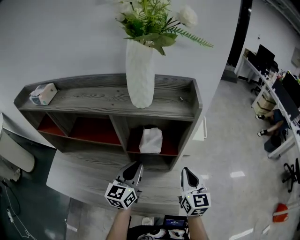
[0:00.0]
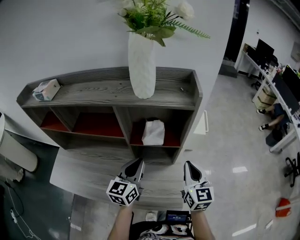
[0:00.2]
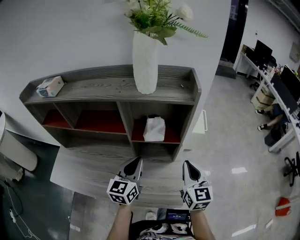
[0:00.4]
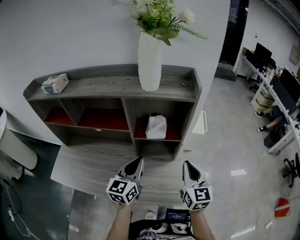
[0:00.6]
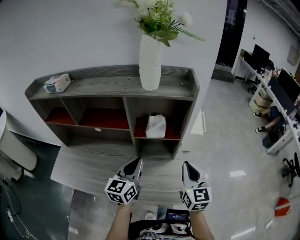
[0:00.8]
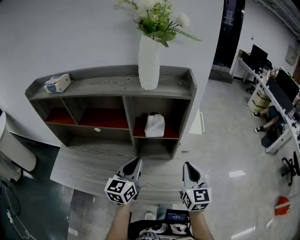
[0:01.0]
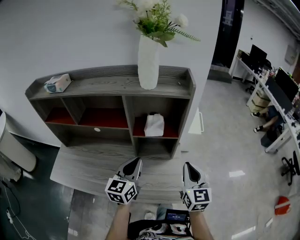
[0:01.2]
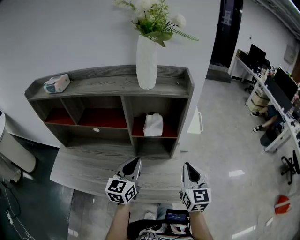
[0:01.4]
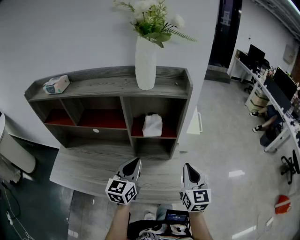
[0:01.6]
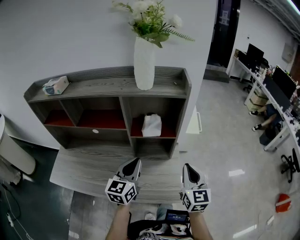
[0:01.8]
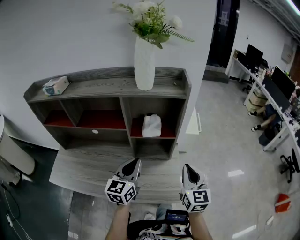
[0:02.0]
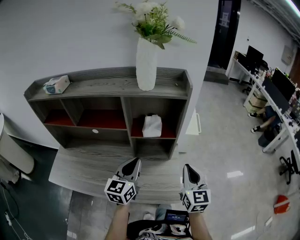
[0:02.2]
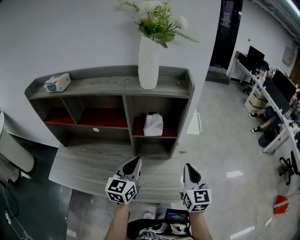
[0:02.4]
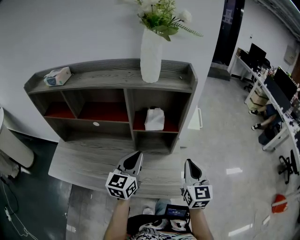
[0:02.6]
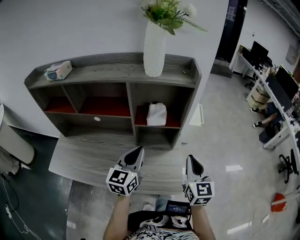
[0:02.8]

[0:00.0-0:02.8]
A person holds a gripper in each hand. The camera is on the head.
0:00.0 to 0:01.4: The grippers both shift backward by some 10 cm.
0:01.4 to 0:02.8: The two grippers keep their place.

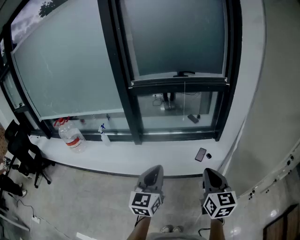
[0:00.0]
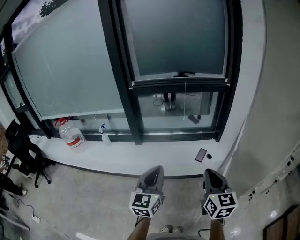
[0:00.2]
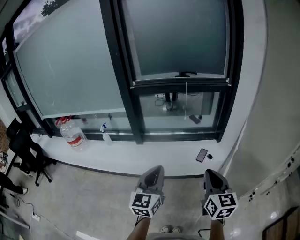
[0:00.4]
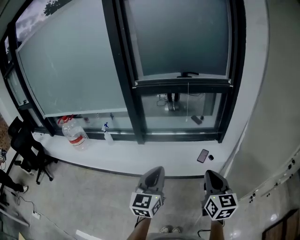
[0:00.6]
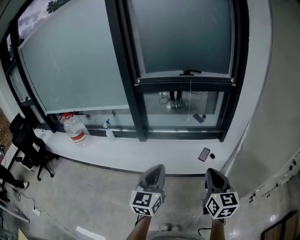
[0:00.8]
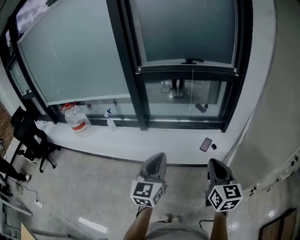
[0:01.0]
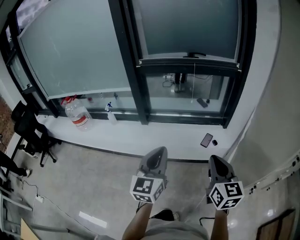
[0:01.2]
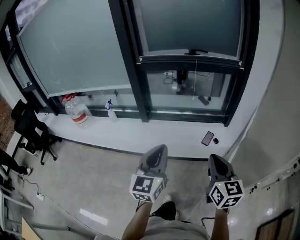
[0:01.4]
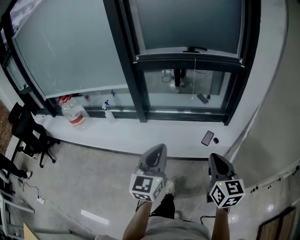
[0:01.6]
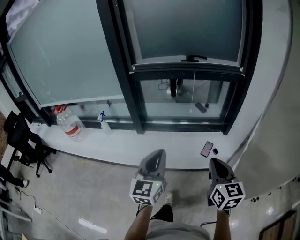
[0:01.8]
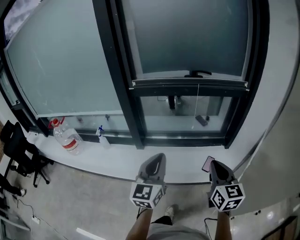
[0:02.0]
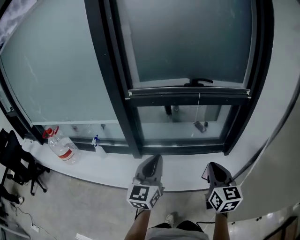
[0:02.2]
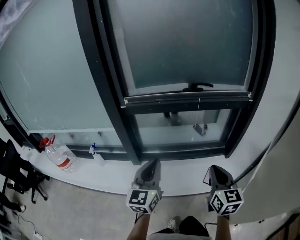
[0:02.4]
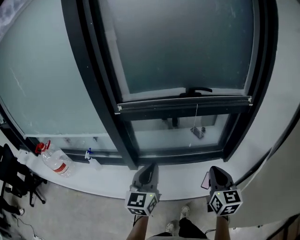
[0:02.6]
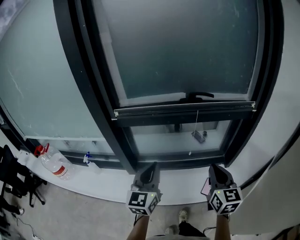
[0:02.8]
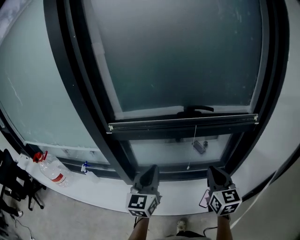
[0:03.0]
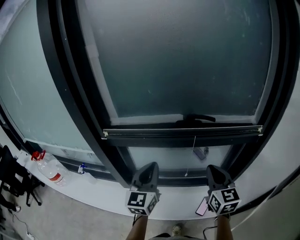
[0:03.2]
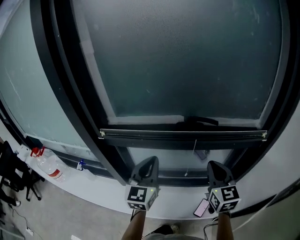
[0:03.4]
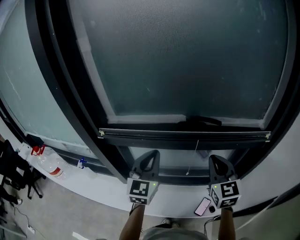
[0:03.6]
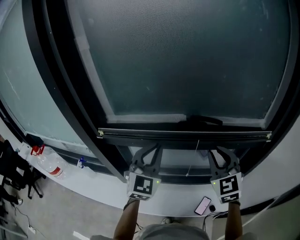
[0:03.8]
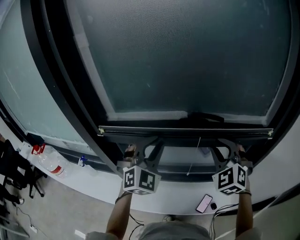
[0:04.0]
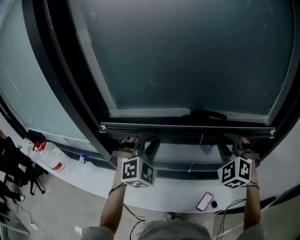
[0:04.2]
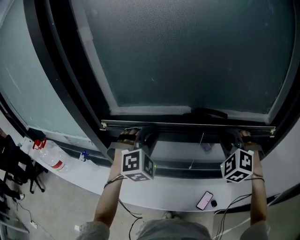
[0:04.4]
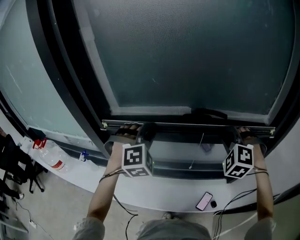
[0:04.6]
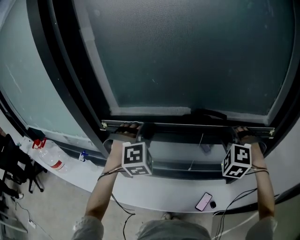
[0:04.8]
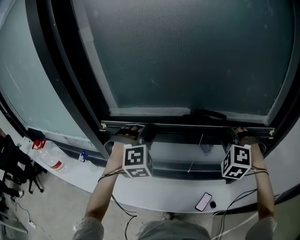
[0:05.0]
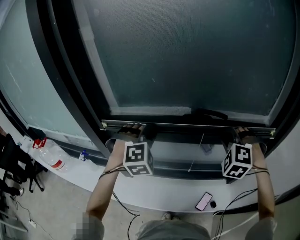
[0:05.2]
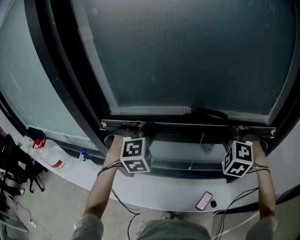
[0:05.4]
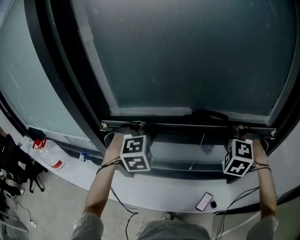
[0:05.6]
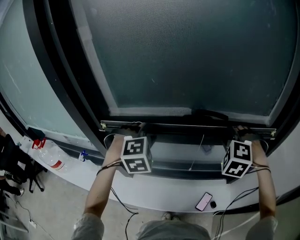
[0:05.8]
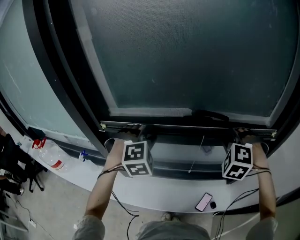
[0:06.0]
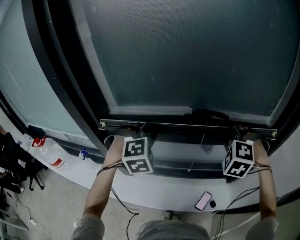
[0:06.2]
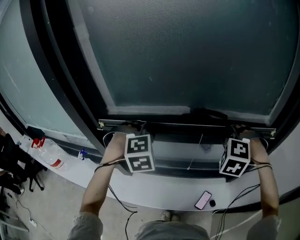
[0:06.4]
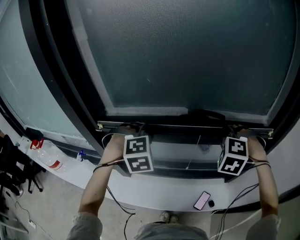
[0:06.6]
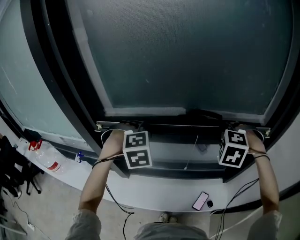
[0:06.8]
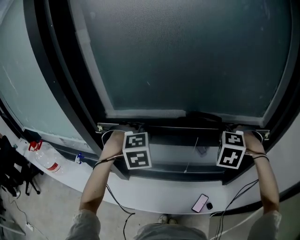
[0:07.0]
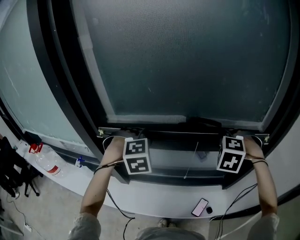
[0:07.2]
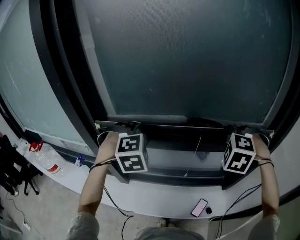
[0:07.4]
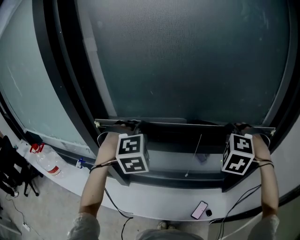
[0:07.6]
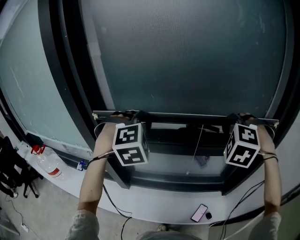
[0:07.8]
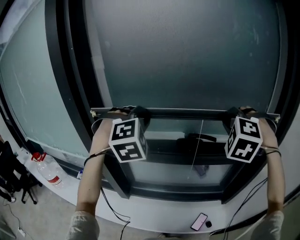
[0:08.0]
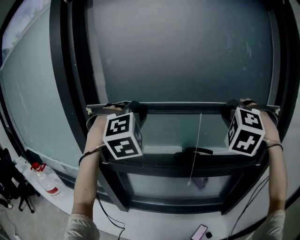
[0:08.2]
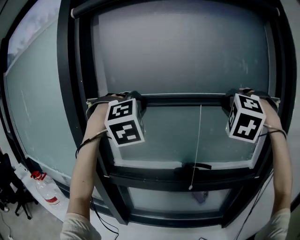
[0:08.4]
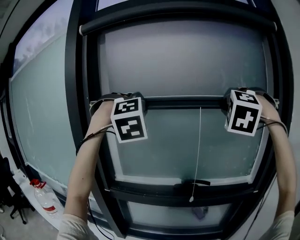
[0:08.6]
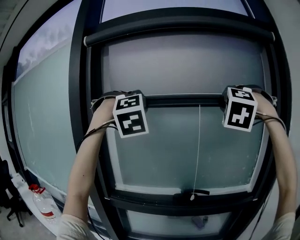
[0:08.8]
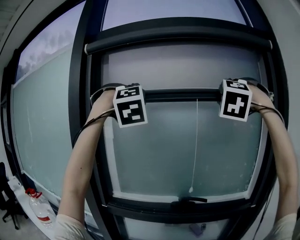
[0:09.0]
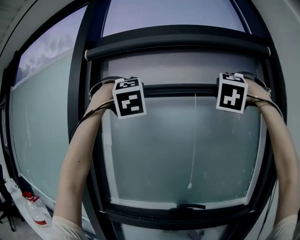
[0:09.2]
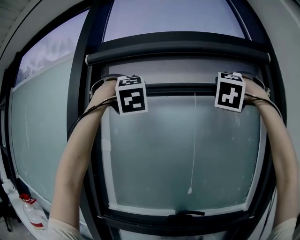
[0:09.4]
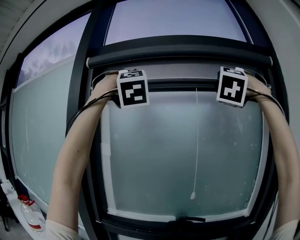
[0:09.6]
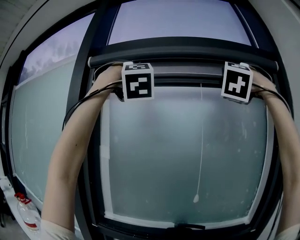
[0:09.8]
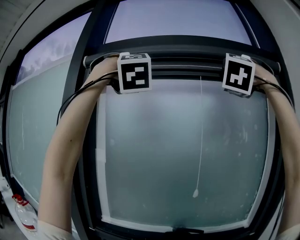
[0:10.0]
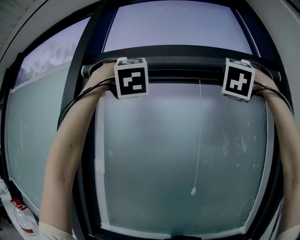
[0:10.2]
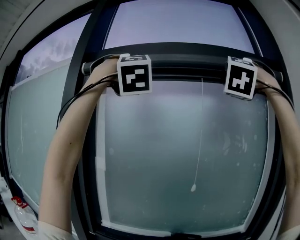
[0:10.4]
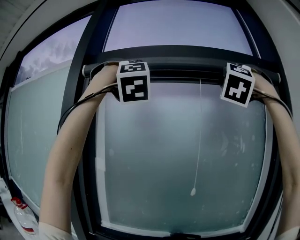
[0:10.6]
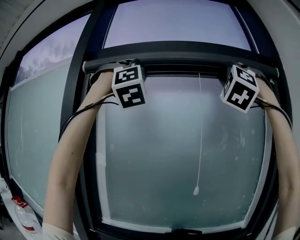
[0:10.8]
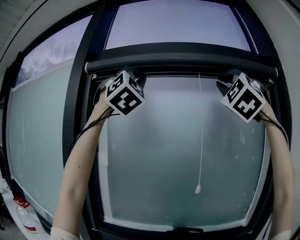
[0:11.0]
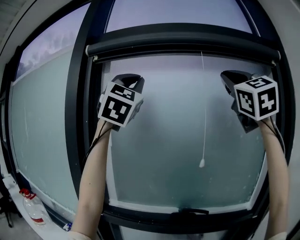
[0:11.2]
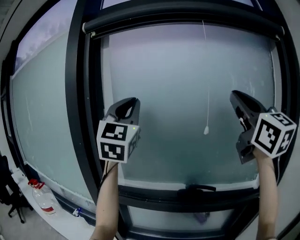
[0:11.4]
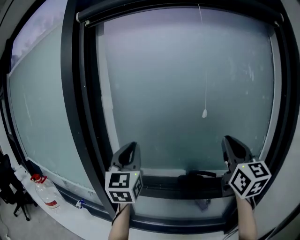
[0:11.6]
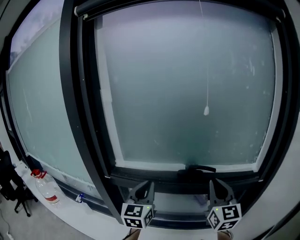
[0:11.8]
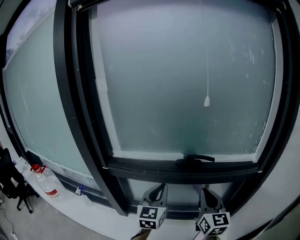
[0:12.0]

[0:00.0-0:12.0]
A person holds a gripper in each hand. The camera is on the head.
0:00.0 to 0:01.6: The grippers stay close to where they were, moving slightly.
0:01.6 to 0:03.0: The two grippers travel together, forward, about 40 cm.
0:03.0 to 0:04.4: The grippers both shift forward by roughly 20 cm. The left gripper twists roughly 70 degrees clockwise, seen from behind, while the right gripper rotates around the line of its fingers by about 70 degrees, counterclockwise from behind.
0:06.0 to 0:07.6: The two grippers go some 5 cm upward.
0:07.6 to 0:09.0: Both grippers move upward, roughly 50 cm. The right gripper tips its fingers upward by approximately 40 degrees, while the left gripper angles its fingers upward, by roughly 30 degrees.
0:09.0 to 0:10.4: Both grippers travel together upward, some 20 cm.
0:10.4 to 0:12.0: The grippers both shift downward by roughly 70 cm. The left gripper rotates around the line of its fingers by approximately 90 degrees, counterclockwise from behind. The right gripper rotates around the line of its fingers by about 90 degrees, clockwise from behind.

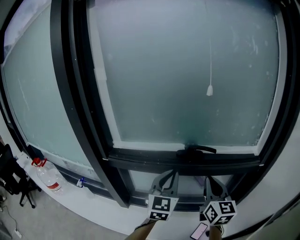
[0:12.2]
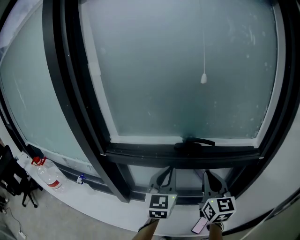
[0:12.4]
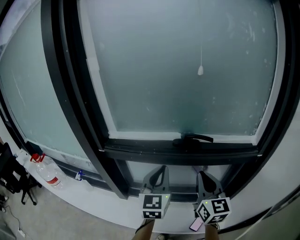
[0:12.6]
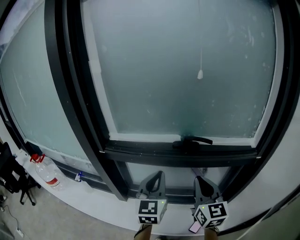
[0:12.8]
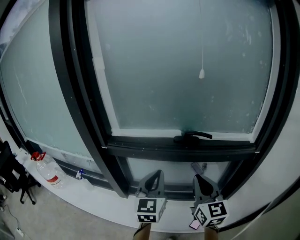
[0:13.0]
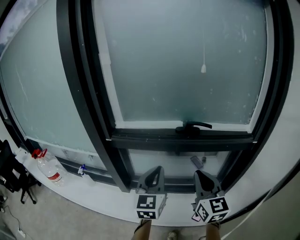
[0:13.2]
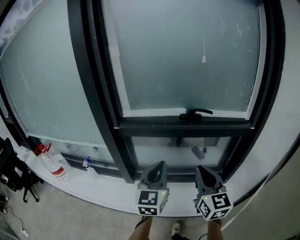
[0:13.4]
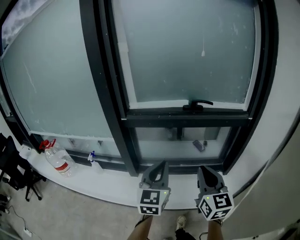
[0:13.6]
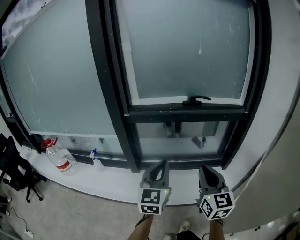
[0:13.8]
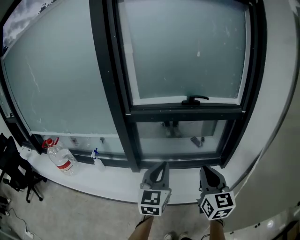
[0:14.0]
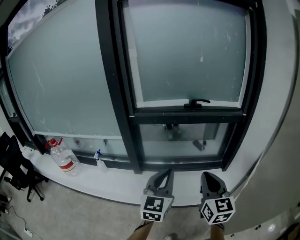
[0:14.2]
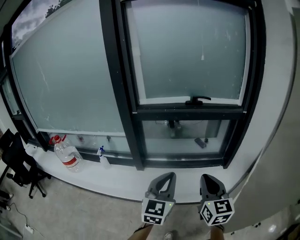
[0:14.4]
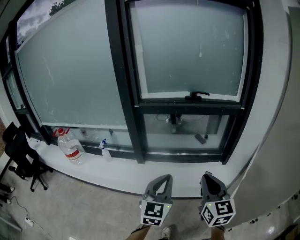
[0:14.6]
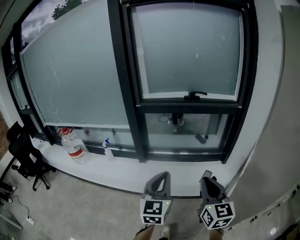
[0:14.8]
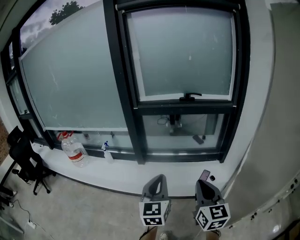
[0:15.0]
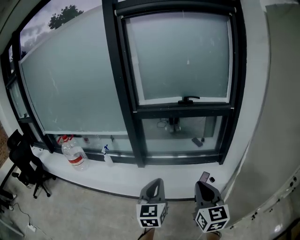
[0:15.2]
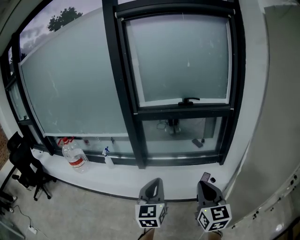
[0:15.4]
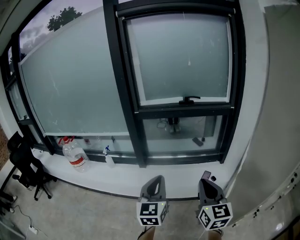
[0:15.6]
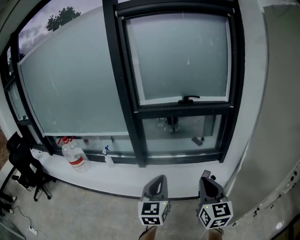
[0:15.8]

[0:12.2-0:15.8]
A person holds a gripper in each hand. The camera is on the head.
0:12.2 to 0:14.0: Both grippers move backward, about 35 cm.
0:14.0 to 0:15.8: Both grippers travel together backward, some 20 cm.

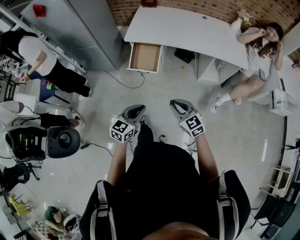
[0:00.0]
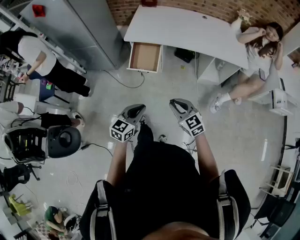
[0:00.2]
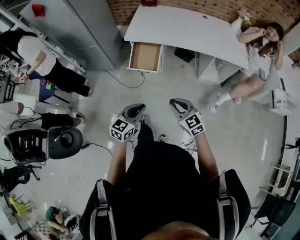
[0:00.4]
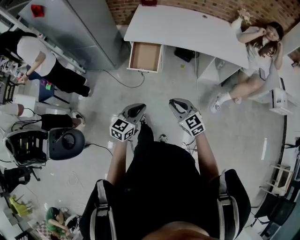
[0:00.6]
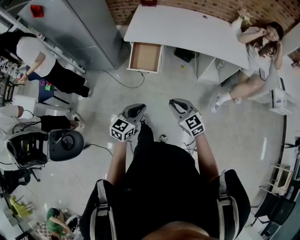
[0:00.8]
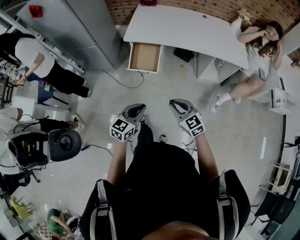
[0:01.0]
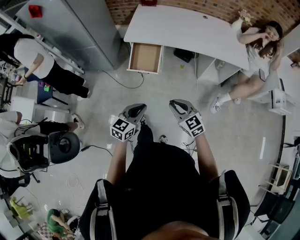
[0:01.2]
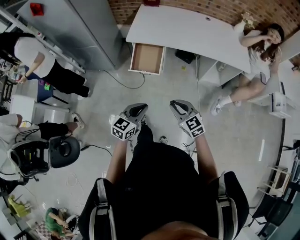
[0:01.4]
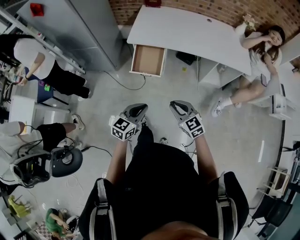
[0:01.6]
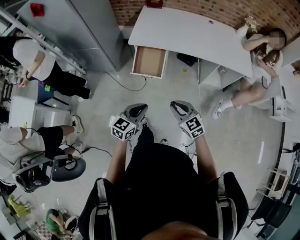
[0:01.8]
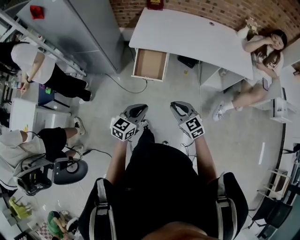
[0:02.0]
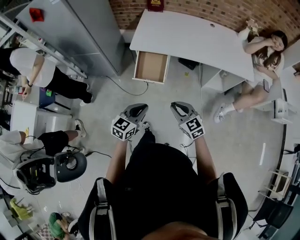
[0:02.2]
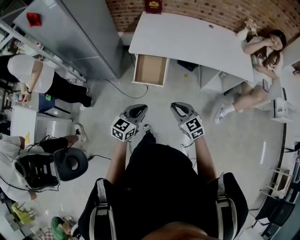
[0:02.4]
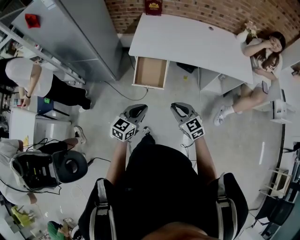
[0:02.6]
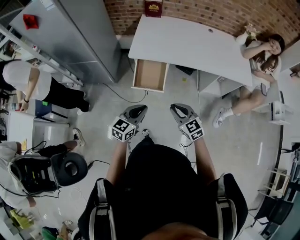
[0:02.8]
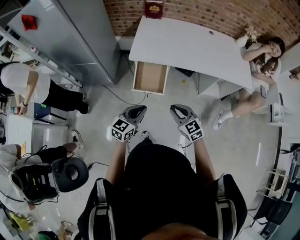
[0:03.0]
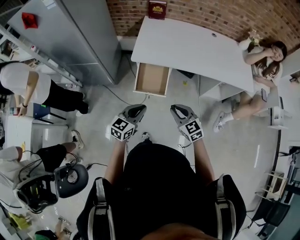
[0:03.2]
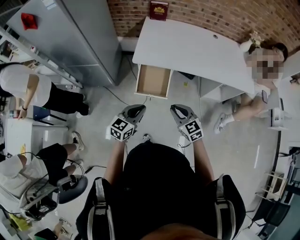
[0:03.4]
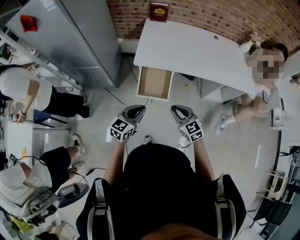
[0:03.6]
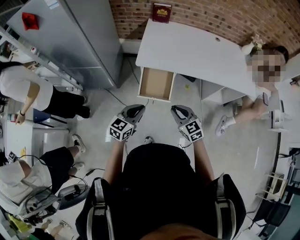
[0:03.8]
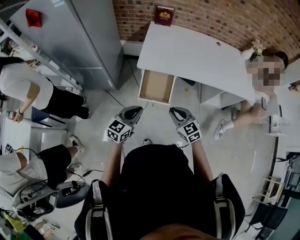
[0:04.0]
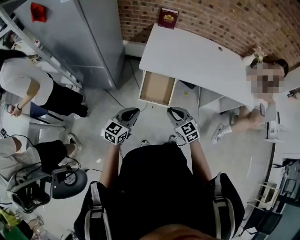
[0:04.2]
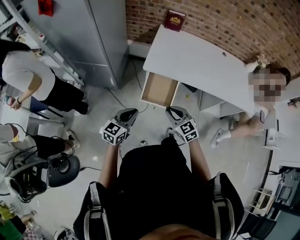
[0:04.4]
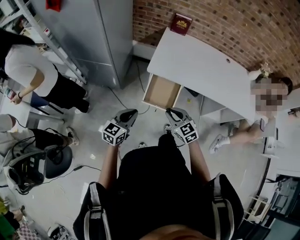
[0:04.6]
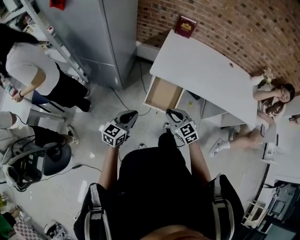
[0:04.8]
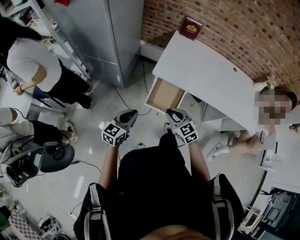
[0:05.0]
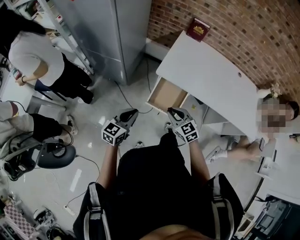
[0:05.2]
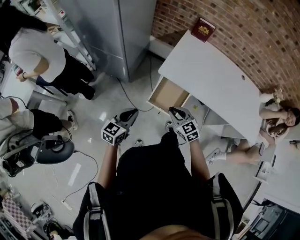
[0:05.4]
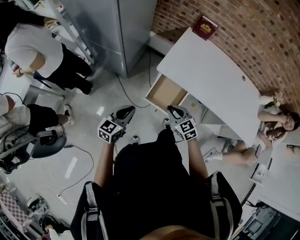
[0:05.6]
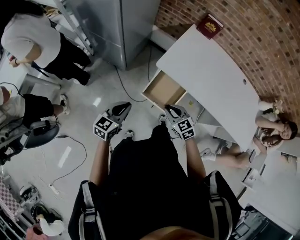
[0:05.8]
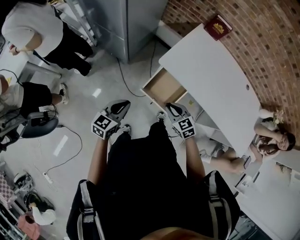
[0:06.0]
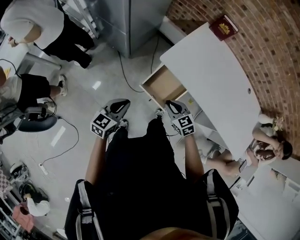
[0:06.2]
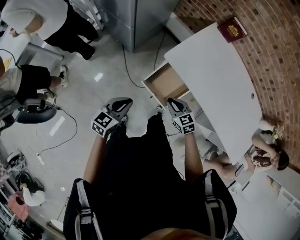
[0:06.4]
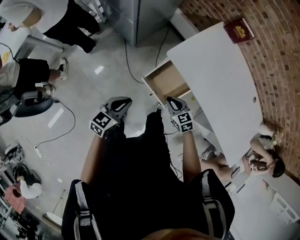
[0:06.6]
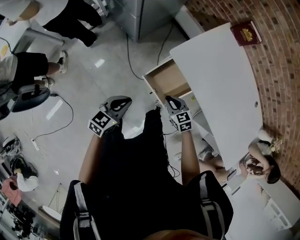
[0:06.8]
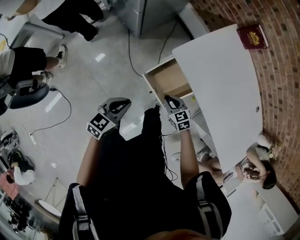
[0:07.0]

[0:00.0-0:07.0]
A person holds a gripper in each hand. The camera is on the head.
0:00.0 to 0:01.4: The grippers make only small movements.
0:01.4 to 0:02.8: Both grippers move forward and to the left, about 15 cm.
0:02.8 to 0:04.2: The grippers both shift to the left and forward by some 15 cm.
0:04.2 to 0:05.6: The right gripper shifts roughly 10 cm forward. The left gripper changes place by approximately 5 cm.
0:05.6 to 0:07.0: The right gripper is displaced downward by roughly 15 cm, and changes its angle by roughly 20 degrees. Meanwhile the left gripper heads downward and to the right, covering some 10 cm.
